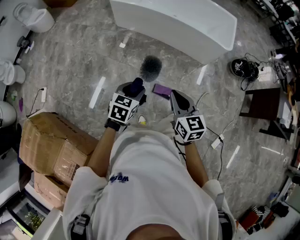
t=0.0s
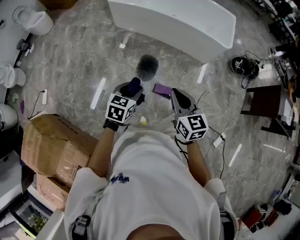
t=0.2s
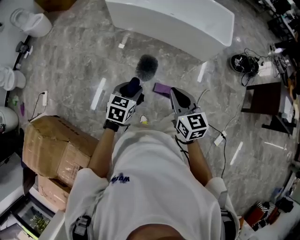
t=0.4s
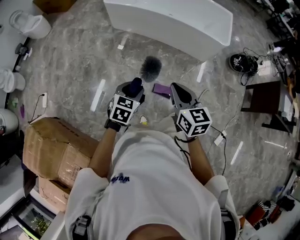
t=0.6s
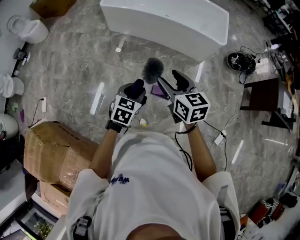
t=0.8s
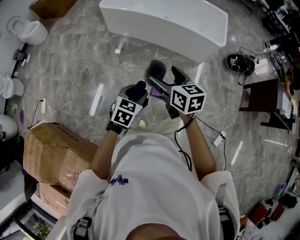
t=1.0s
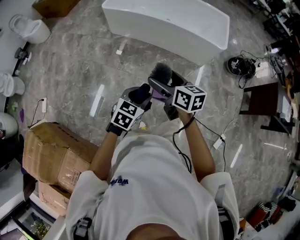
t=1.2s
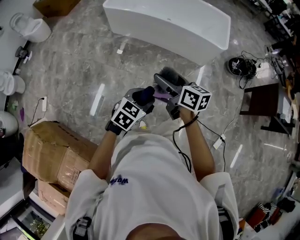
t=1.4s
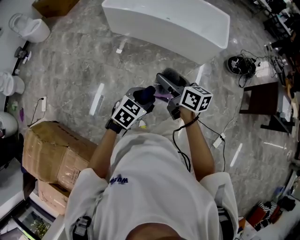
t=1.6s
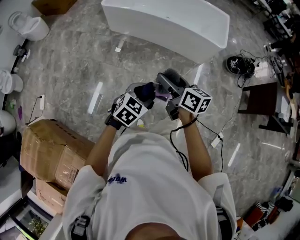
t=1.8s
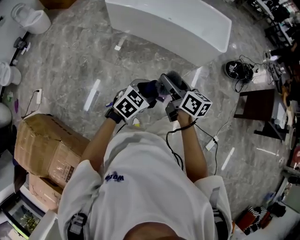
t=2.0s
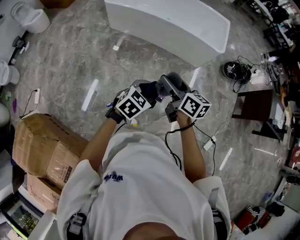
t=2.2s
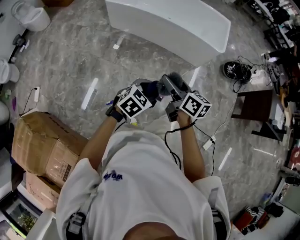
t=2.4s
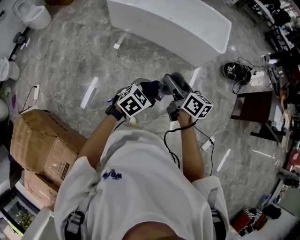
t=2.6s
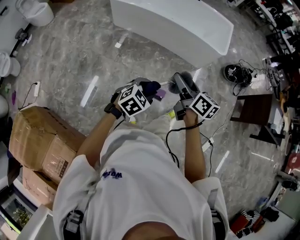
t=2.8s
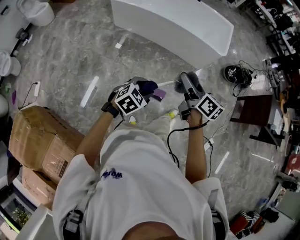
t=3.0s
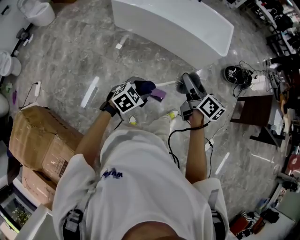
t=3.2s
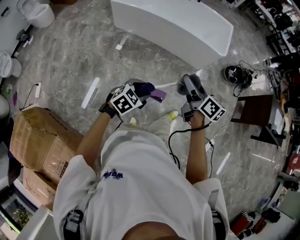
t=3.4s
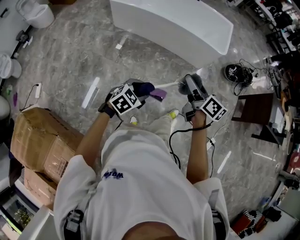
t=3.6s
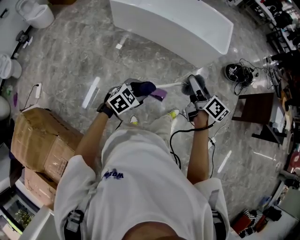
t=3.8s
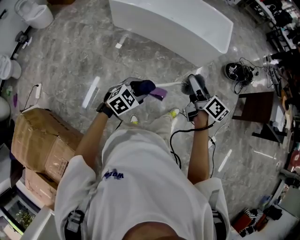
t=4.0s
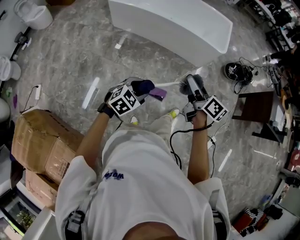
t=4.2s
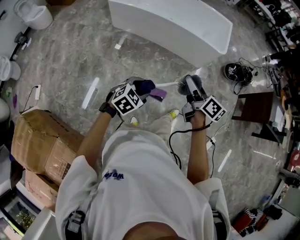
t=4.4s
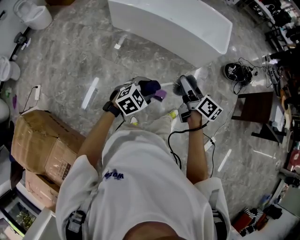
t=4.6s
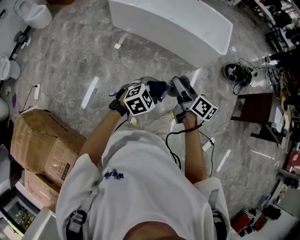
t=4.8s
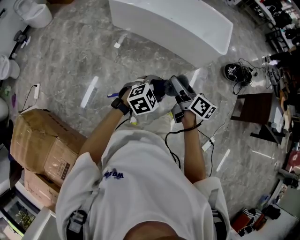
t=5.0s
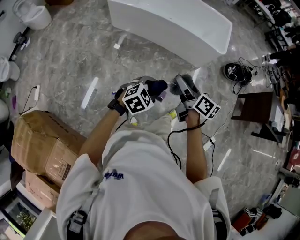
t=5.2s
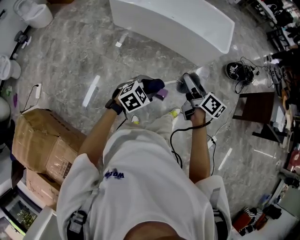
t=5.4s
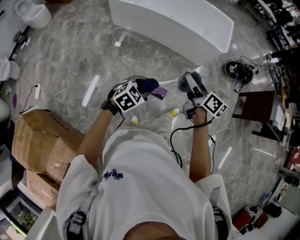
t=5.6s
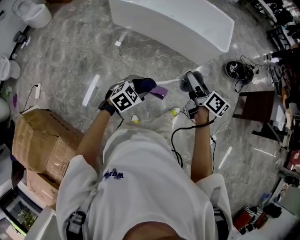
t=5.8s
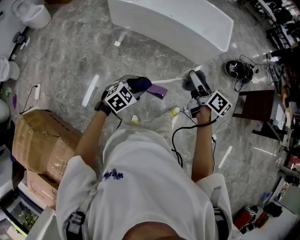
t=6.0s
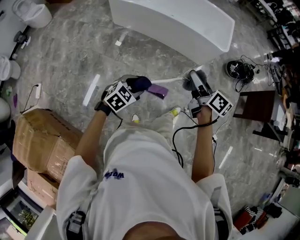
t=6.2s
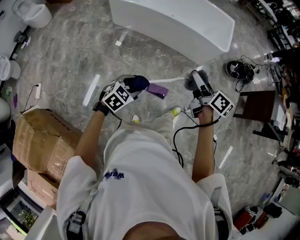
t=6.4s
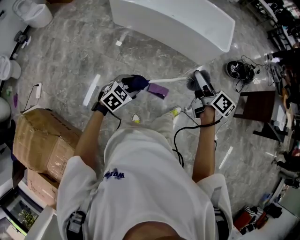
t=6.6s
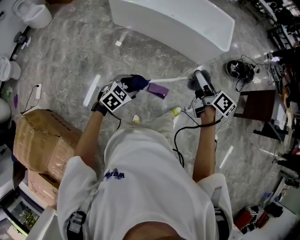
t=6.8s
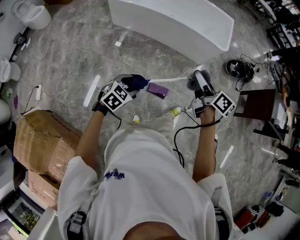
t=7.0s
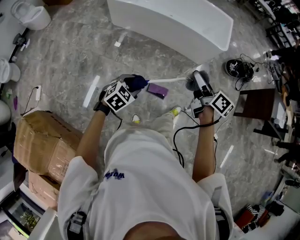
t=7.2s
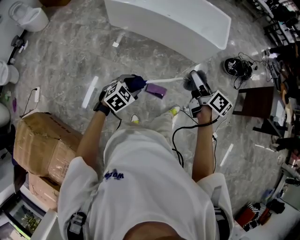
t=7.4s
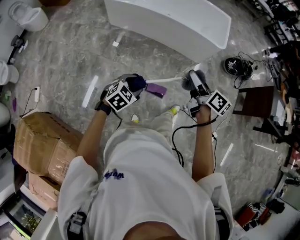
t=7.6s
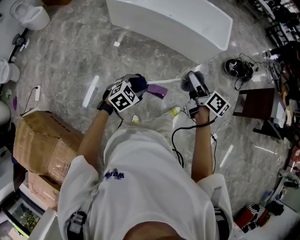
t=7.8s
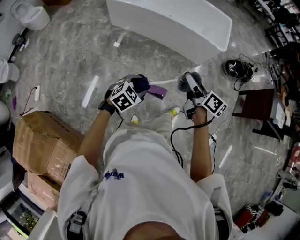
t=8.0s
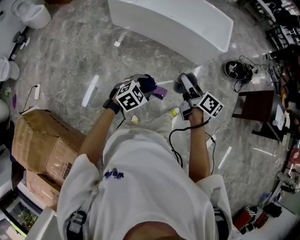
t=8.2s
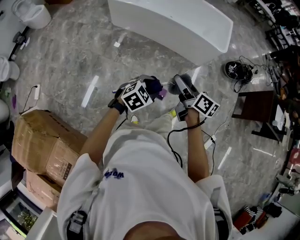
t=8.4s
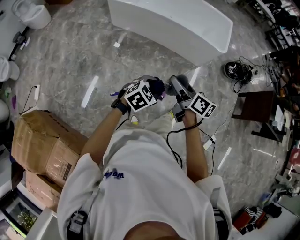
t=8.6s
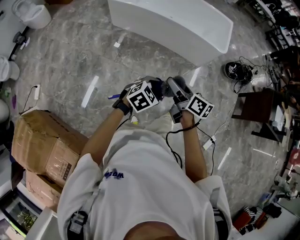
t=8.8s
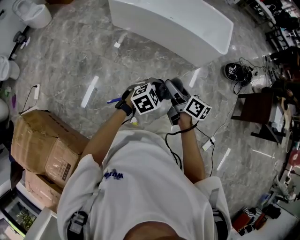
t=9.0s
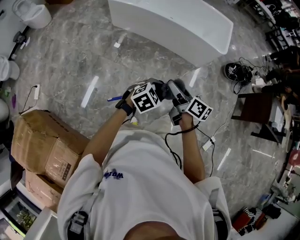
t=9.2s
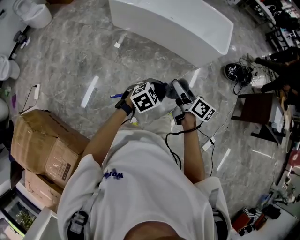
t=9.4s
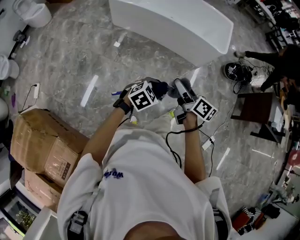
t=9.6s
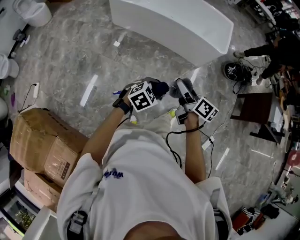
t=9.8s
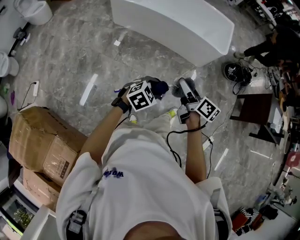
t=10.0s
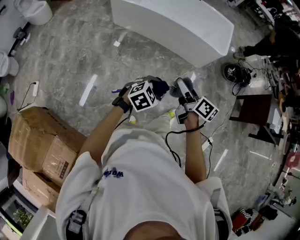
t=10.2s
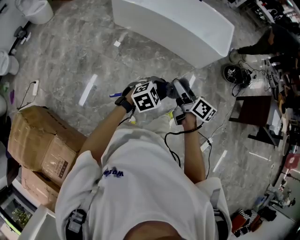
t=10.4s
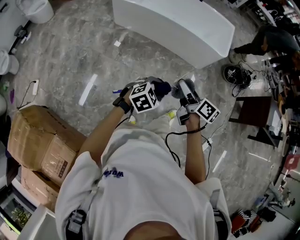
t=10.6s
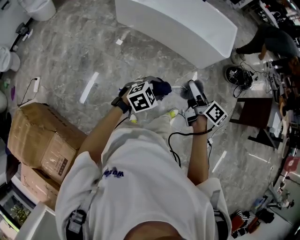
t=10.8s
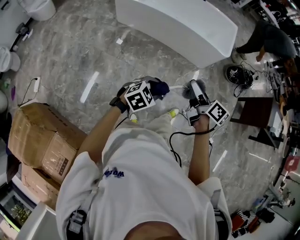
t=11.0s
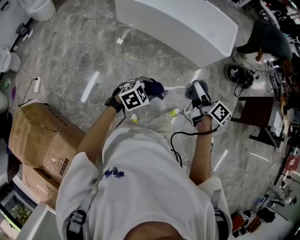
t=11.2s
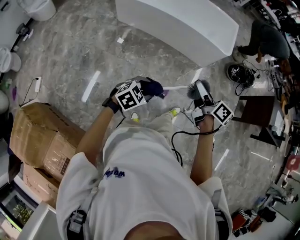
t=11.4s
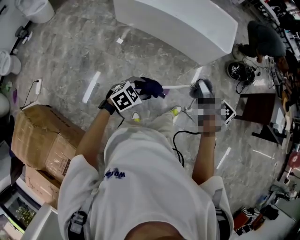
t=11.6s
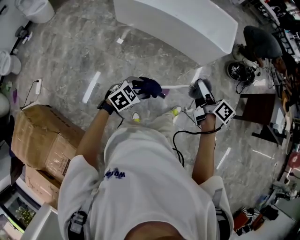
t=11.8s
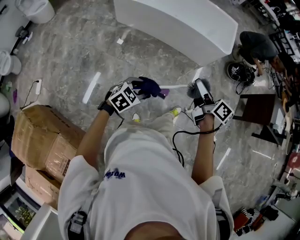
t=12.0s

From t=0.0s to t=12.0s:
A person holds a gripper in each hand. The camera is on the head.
From t=0.0s to t=1.6s: The left gripper travels to the right by approximately 5 cm, and rotates roughly 20 degrees, while the right gripper moves forward, about 10 cm, swivels about 30 degrees, and opens.
From t=1.6s to t=3.0s: The right gripper goes approximately 10 cm to the right.
From t=3.0s to t=4.4s: There are only small adjustments of the grippers.
From t=6.0s to t=7.6s: The grippers make only small movements.
From t=7.6s to t=9.0s: The right gripper is displaced to the left and backward by approximately 10 cm. The left gripper moves to the right, roughly 10 cm.
From t=9.0s to t=10.4s: The grippers move only a little.
From t=10.4s to t=12.0s: The left gripper heads to the left, covering some 10 cm. The right gripper moves to the right, some 5 cm.

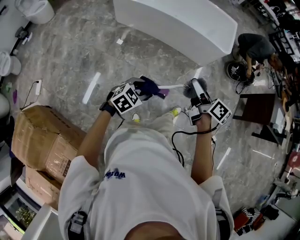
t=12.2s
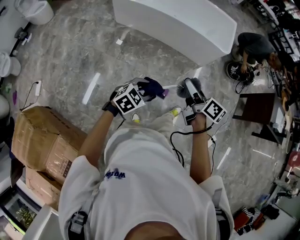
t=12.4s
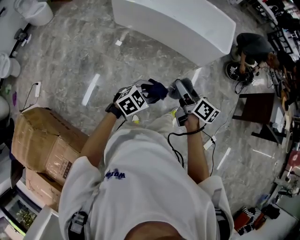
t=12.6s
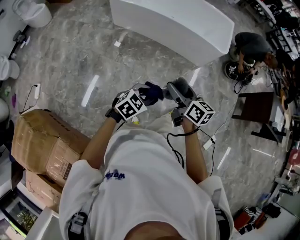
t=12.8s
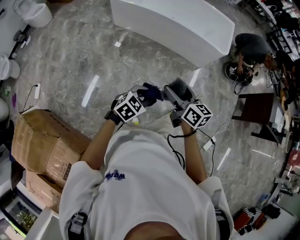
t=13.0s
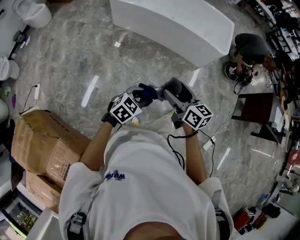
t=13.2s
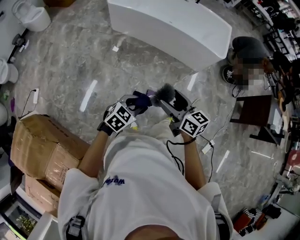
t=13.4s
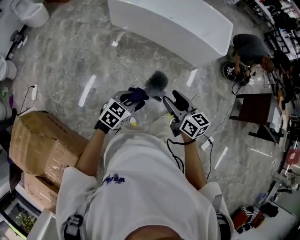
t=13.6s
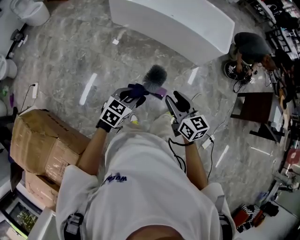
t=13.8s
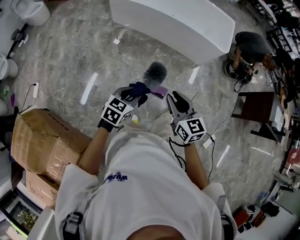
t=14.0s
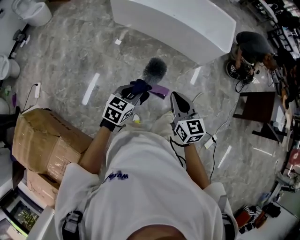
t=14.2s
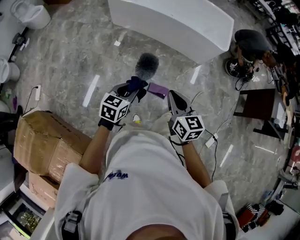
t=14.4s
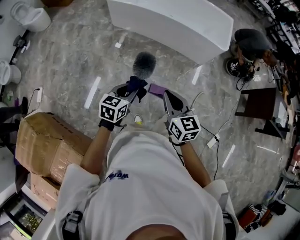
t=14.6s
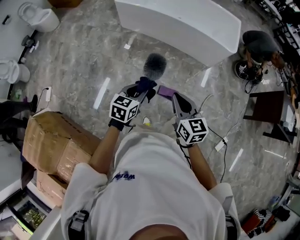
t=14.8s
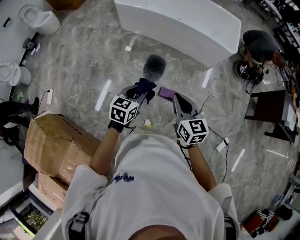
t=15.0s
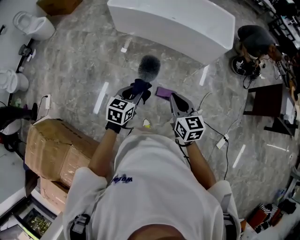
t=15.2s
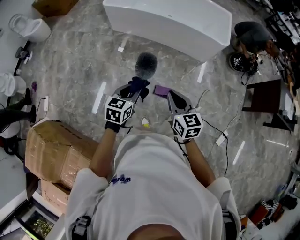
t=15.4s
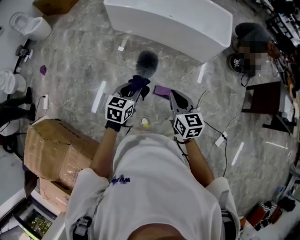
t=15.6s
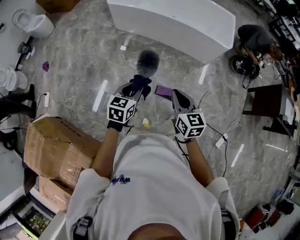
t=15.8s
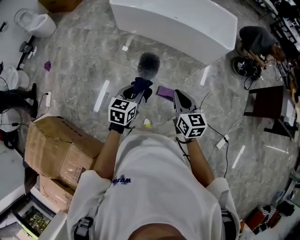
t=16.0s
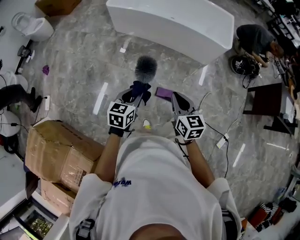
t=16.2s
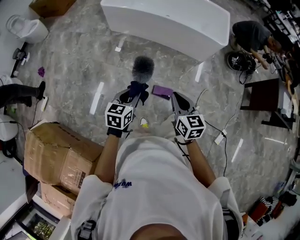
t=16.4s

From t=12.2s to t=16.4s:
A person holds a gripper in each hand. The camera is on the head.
From t=12.2s to t=13.6s: The right gripper shifts approximately 10 cm to the left and backward, and rotates roughly 30 degrees.
From t=13.6s to t=15.0s: The right gripper closes its fingers.
From t=15.0s to t=16.4s: The grippers make only small movements.

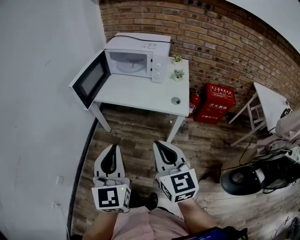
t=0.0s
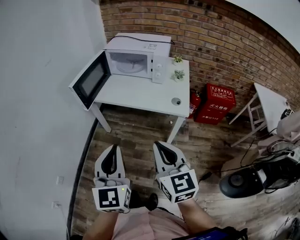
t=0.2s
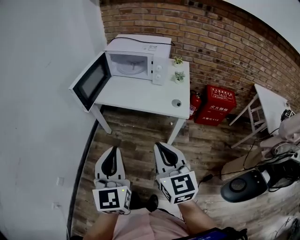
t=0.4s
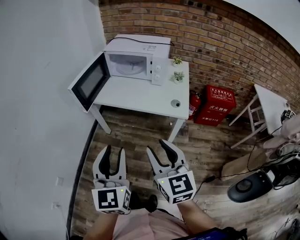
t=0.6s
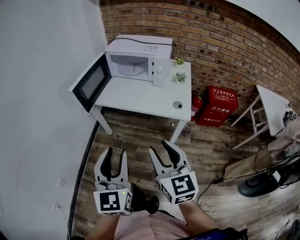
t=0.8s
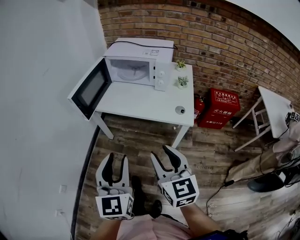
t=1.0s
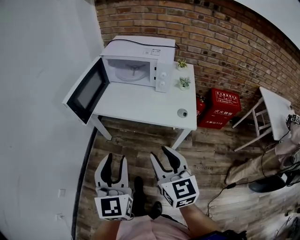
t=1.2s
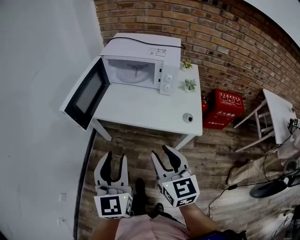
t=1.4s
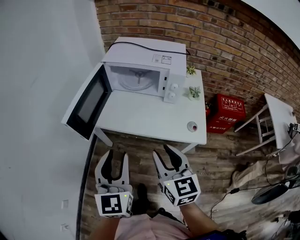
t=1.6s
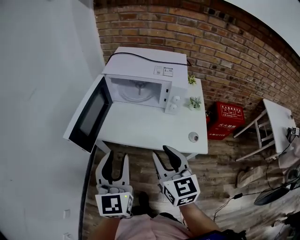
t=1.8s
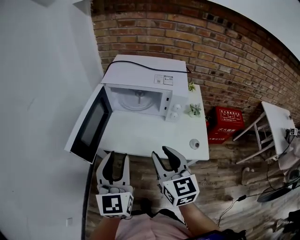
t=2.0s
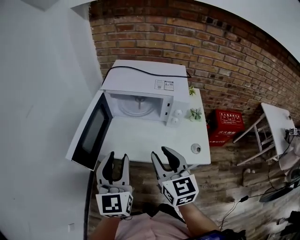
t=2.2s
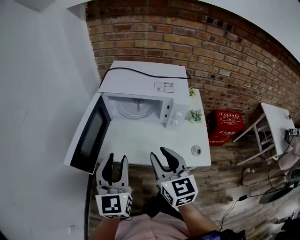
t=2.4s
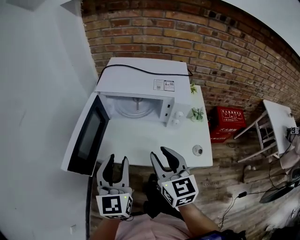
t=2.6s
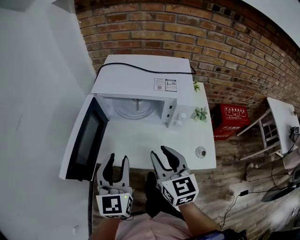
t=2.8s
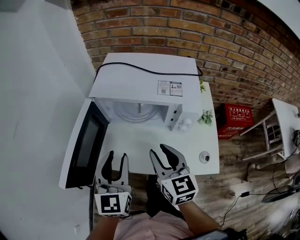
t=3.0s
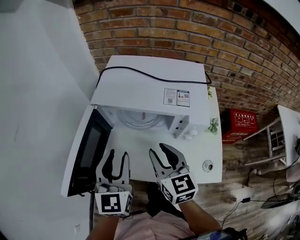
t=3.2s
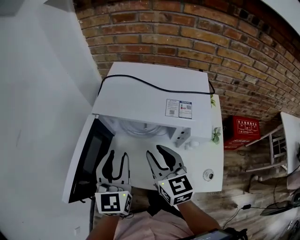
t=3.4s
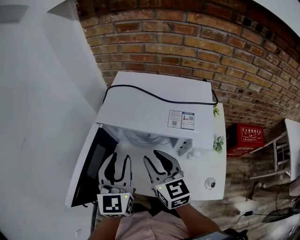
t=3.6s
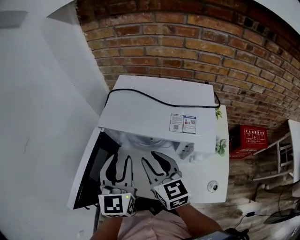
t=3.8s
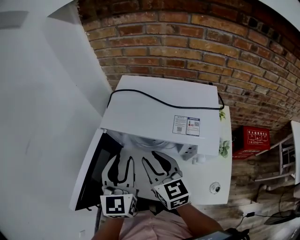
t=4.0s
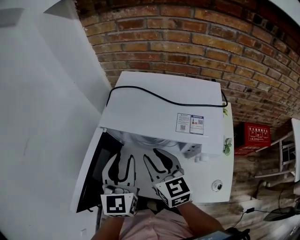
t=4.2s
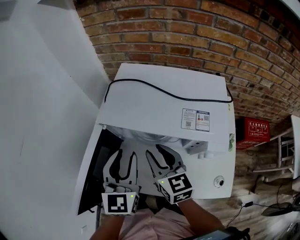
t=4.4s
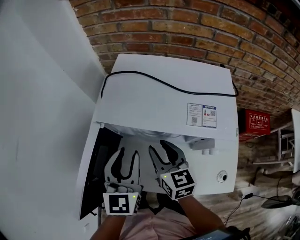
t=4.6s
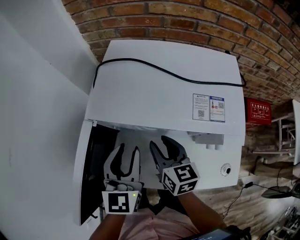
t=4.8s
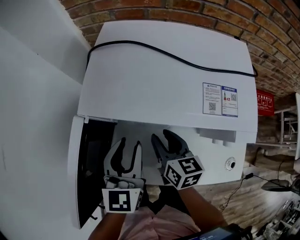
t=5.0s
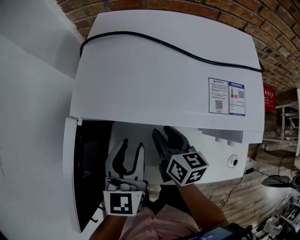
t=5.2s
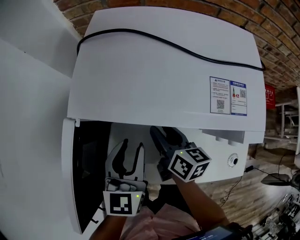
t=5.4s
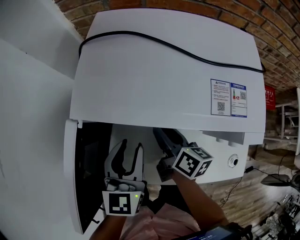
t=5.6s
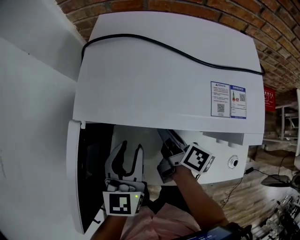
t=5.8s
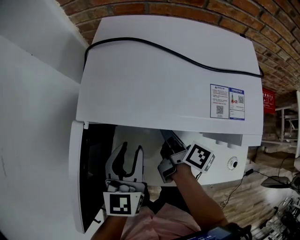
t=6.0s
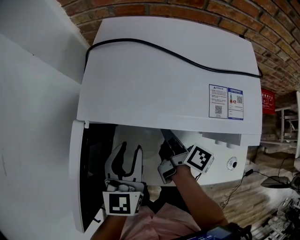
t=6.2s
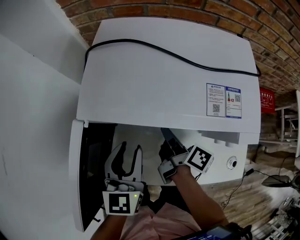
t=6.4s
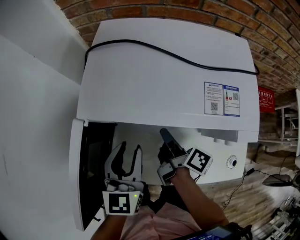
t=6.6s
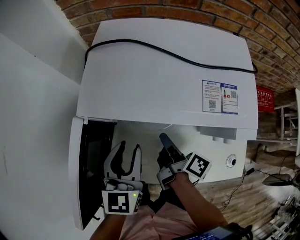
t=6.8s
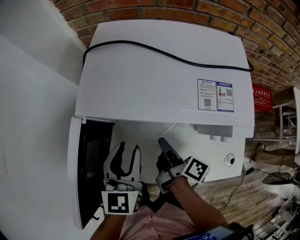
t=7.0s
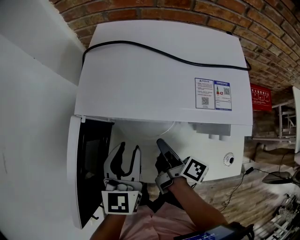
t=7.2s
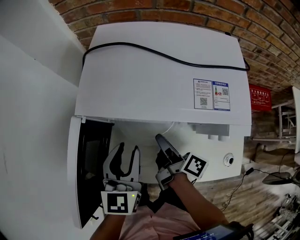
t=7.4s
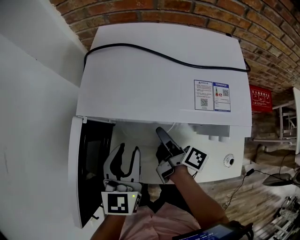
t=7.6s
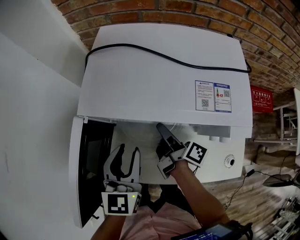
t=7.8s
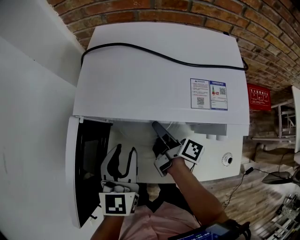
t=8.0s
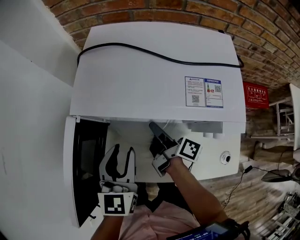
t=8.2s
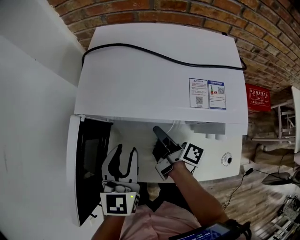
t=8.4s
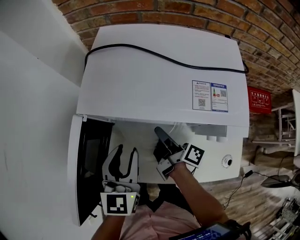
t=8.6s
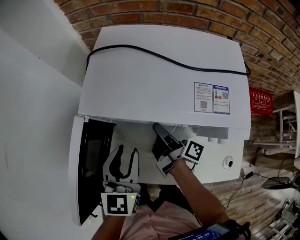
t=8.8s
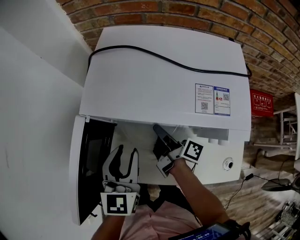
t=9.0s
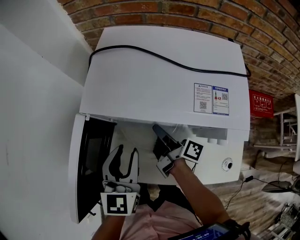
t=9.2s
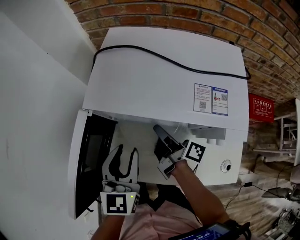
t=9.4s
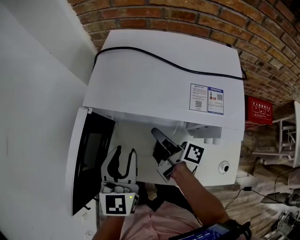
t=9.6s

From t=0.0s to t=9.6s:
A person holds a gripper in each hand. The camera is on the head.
From t=0.0s to t=1.6s: Both grippers travel together forward, roughly 20 cm. The left gripper opens up. The right gripper opens.
From t=1.6s to t=3.2s: Both grippers move forward, about 25 cm.
From t=3.2s to t=4.8s: Both grippers travel together forward and downward, approximately 15 cm.
From t=4.8s to t=6.4s: The right gripper moves downward, about 5 cm, rotates around the line of its fingers by about 60 degrees, clockwise from behind, and closes its fingers.
From t=6.4s to t=8.0s: The grippers stay close to where they were, moving slightly.
From t=8.0s to t=9.6s: The grippers make only small movements.
